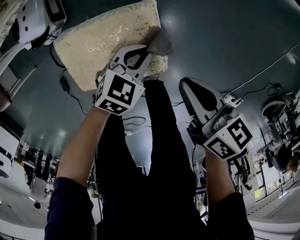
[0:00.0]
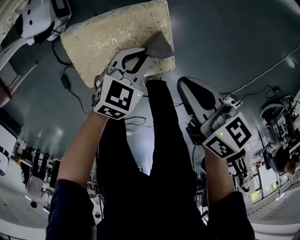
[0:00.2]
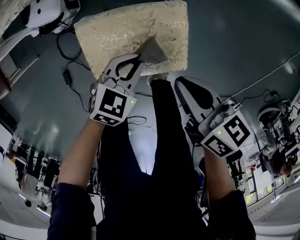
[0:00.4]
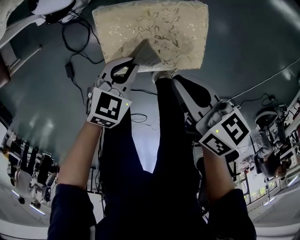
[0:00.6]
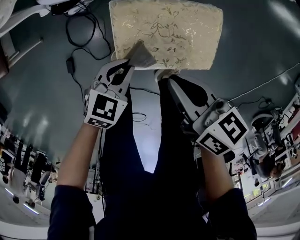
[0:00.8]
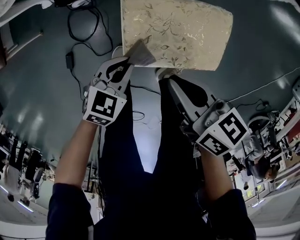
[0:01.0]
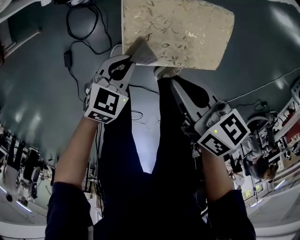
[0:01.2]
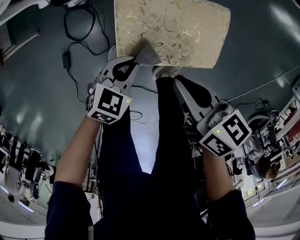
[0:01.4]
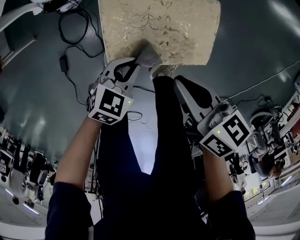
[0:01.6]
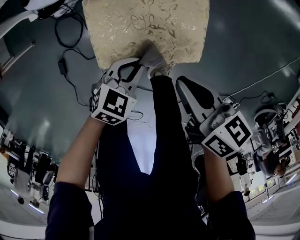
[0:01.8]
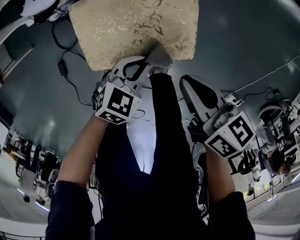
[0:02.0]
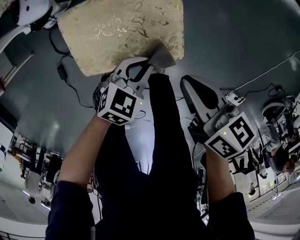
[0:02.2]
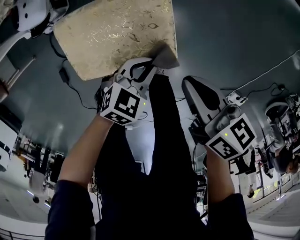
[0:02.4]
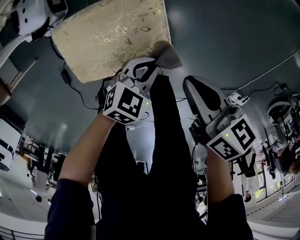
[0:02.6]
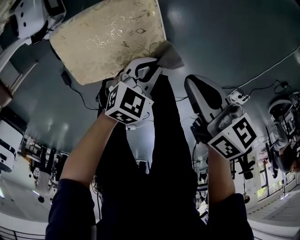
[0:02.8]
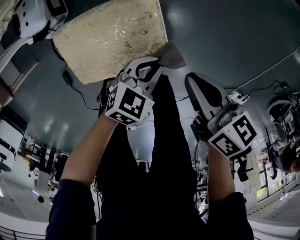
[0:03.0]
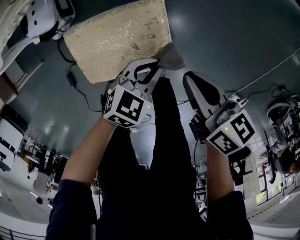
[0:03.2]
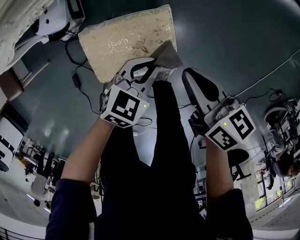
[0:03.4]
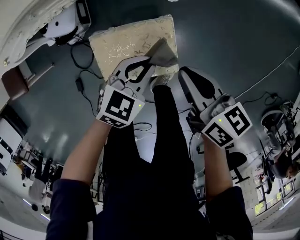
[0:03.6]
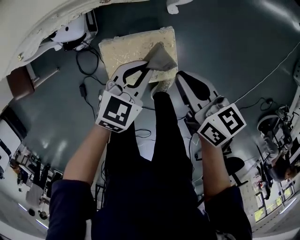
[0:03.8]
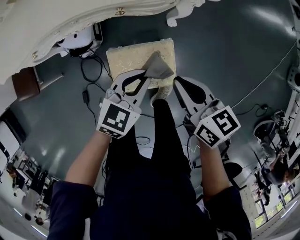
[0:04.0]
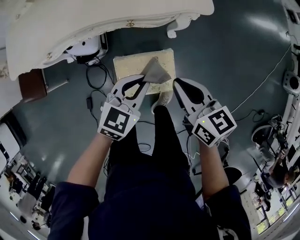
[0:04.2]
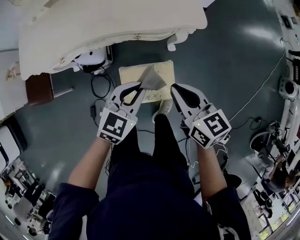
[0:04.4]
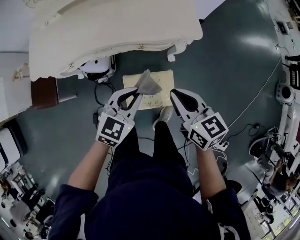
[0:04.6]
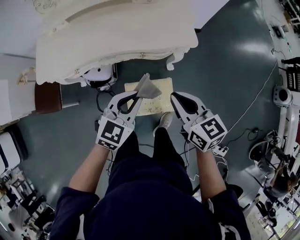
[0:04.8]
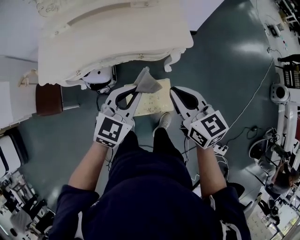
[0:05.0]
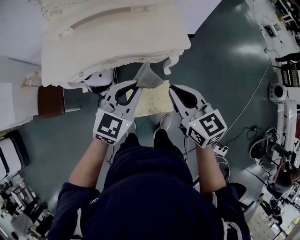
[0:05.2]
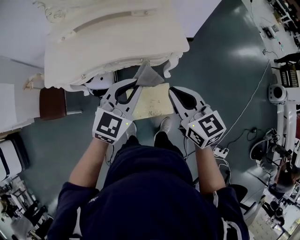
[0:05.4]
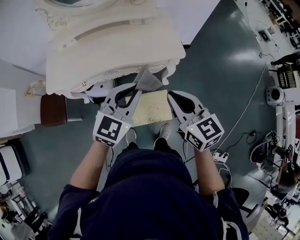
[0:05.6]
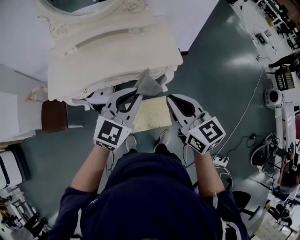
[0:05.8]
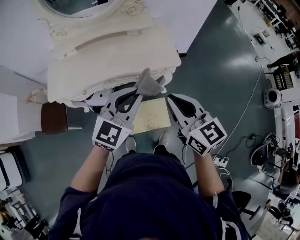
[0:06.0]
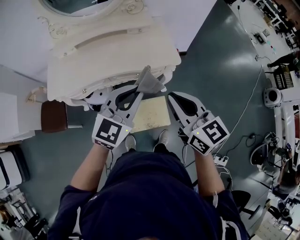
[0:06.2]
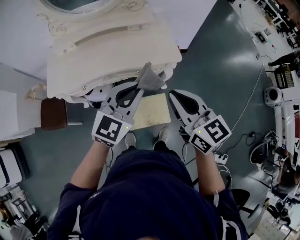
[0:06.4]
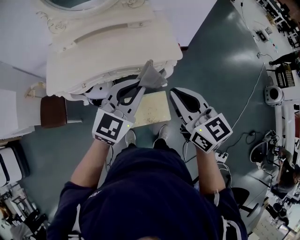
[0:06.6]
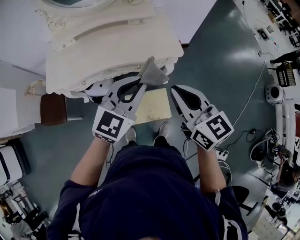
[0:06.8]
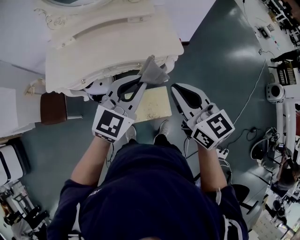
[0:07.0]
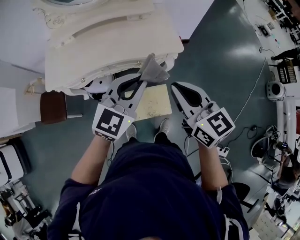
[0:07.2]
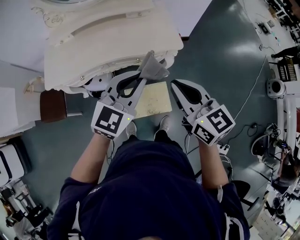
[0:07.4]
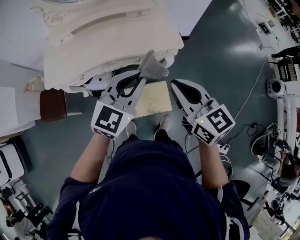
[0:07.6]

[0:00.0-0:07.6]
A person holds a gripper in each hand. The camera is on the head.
0:00.0 to 0:01.6: The left gripper goes about 20 cm to the left and backward; the right gripper is displaced to the left by roughly 15 cm.
0:01.6 to 0:03.0: Both grippers travel together to the right, some 20 cm.
0:03.0 to 0:04.6: The two grippers go some 40 cm upward and to the left. The left gripper rotates roughly 30 degrees; the right gripper turns by some 40 degrees.
0:04.6 to 0:06.0: The two grippers go approximately 20 cm upward. The left gripper changes its angle by approximately 20 degrees.
0:06.0 to 0:07.6: The grippers move only a little.

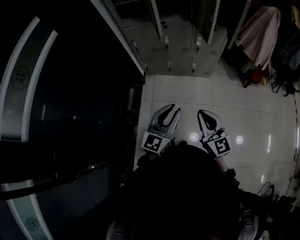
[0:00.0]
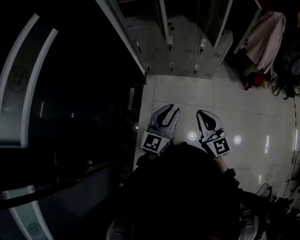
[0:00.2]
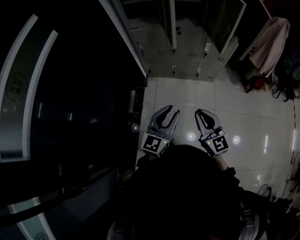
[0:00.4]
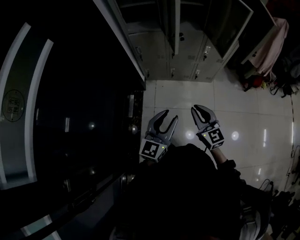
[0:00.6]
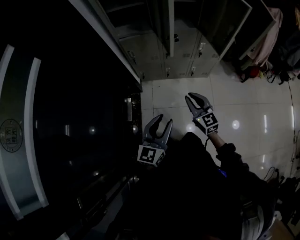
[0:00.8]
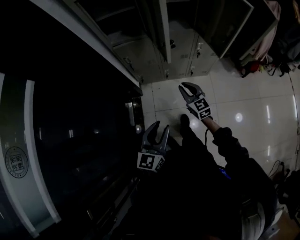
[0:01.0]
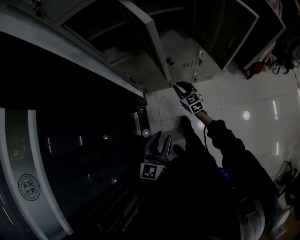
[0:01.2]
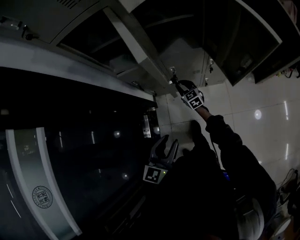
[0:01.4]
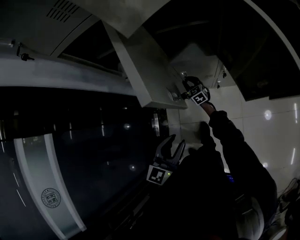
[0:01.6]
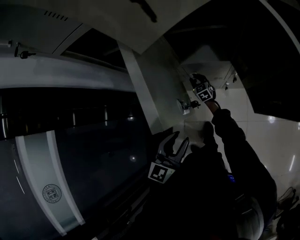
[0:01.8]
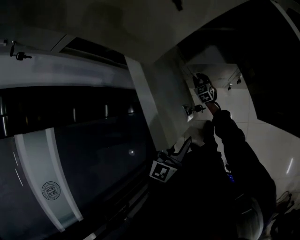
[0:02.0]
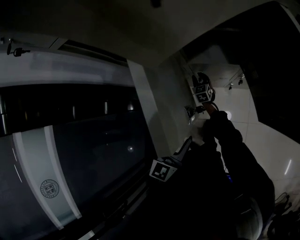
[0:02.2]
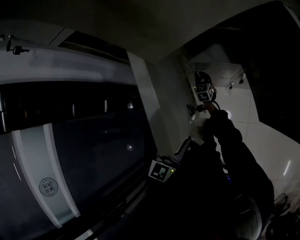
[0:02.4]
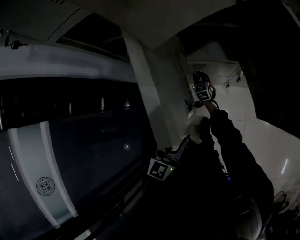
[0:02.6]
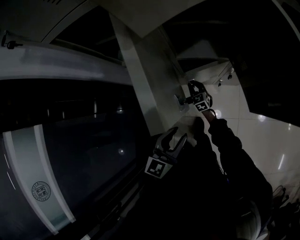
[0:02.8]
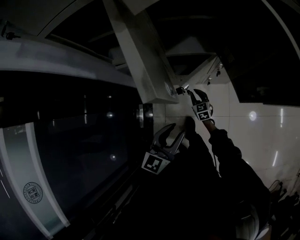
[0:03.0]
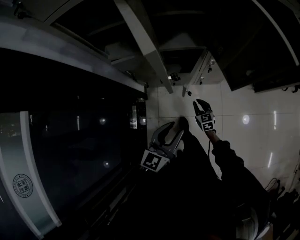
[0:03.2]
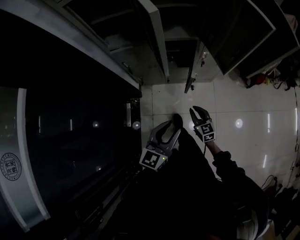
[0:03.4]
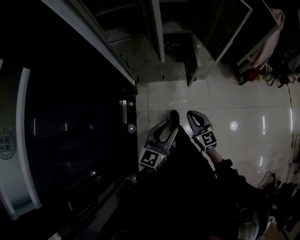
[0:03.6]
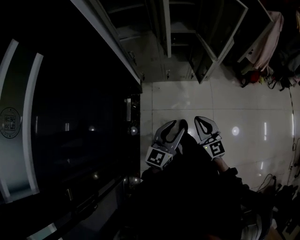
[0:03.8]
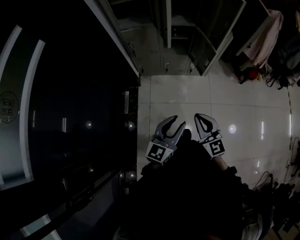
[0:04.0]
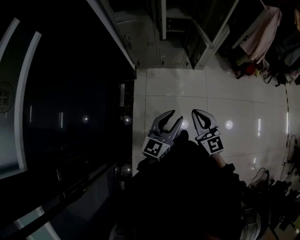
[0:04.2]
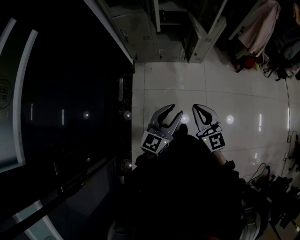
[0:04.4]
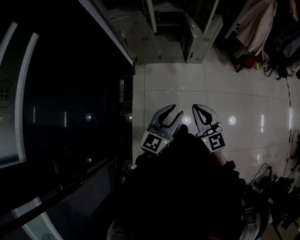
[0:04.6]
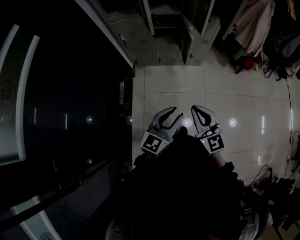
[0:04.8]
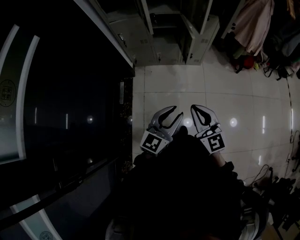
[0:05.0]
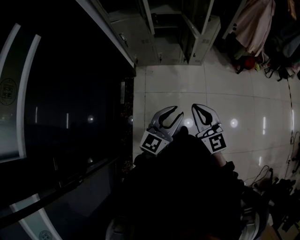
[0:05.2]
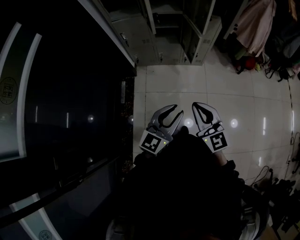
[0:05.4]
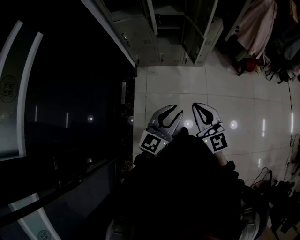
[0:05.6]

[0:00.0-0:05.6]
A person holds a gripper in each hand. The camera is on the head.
0:00.0 to 0:01.4: The left gripper is displaced forward by roughly 30 cm. The right gripper travels forward and downward by about 60 cm, and turns by roughly 20 degrees.
0:01.4 to 0:02.8: The left gripper travels forward by some 10 cm, while the right gripper is displaced downward and forward by about 10 cm.
0:02.8 to 0:04.2: The left gripper travels backward by about 40 cm. The right gripper moves backward and upward, approximately 70 cm, and swivels about 30 degrees.
0:04.2 to 0:05.6: The right gripper heads upward, covering roughly 5 cm. Meanwhile the left gripper moves to the right, about 5 cm.

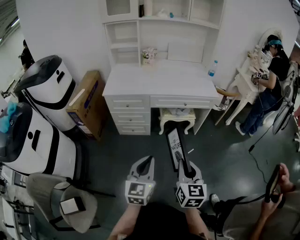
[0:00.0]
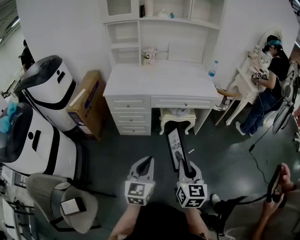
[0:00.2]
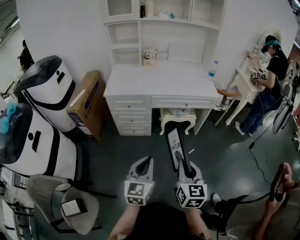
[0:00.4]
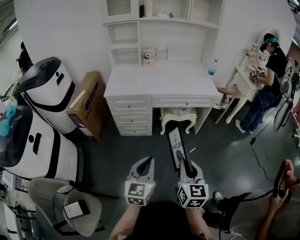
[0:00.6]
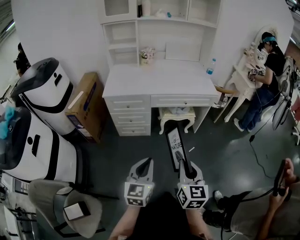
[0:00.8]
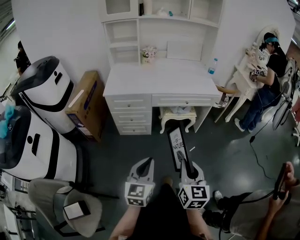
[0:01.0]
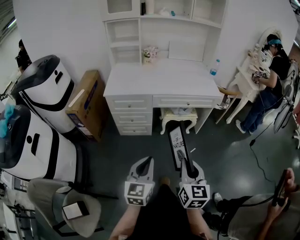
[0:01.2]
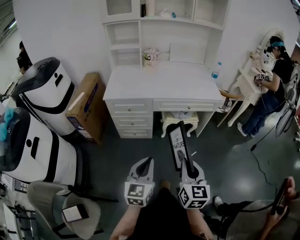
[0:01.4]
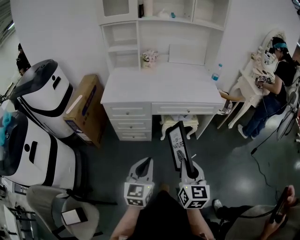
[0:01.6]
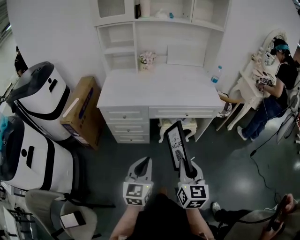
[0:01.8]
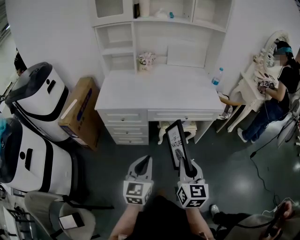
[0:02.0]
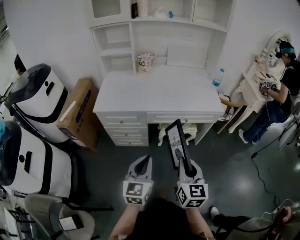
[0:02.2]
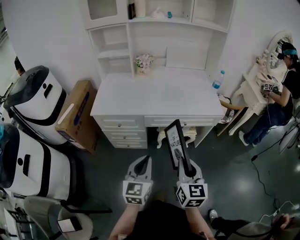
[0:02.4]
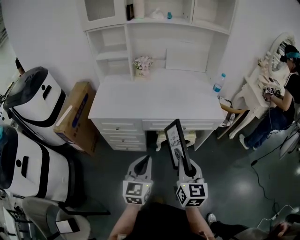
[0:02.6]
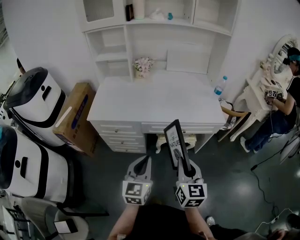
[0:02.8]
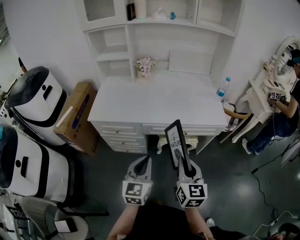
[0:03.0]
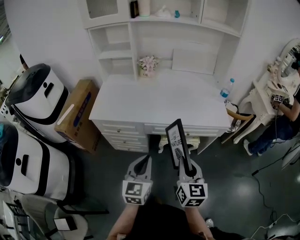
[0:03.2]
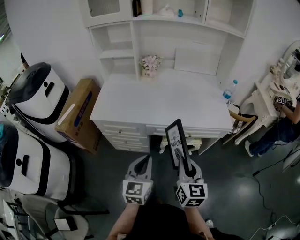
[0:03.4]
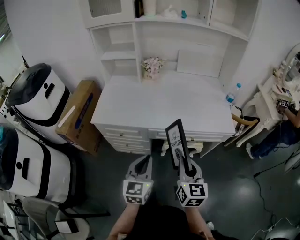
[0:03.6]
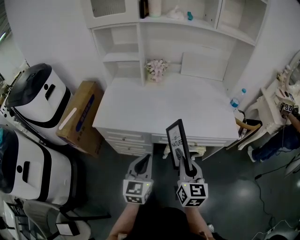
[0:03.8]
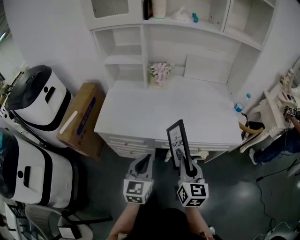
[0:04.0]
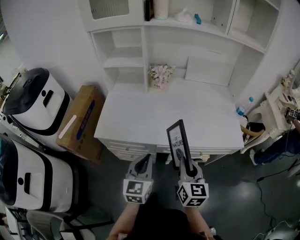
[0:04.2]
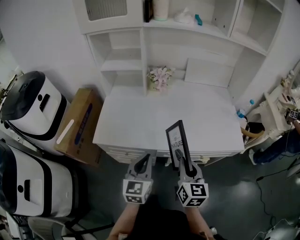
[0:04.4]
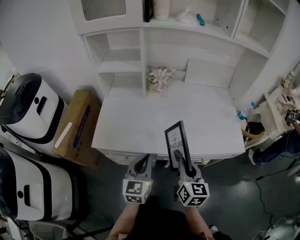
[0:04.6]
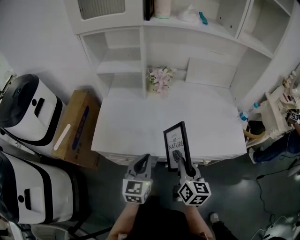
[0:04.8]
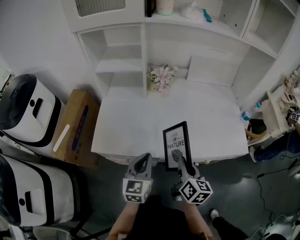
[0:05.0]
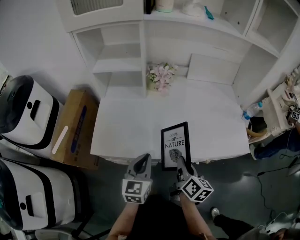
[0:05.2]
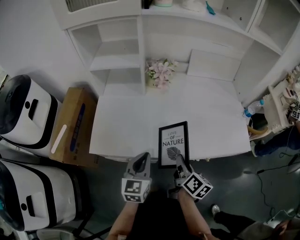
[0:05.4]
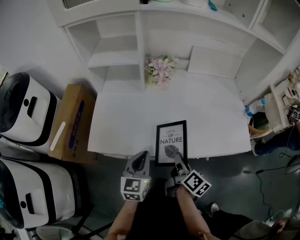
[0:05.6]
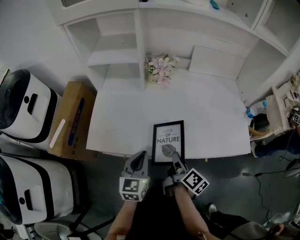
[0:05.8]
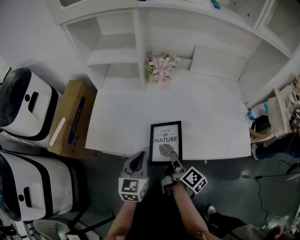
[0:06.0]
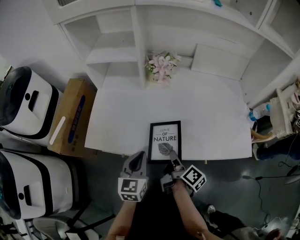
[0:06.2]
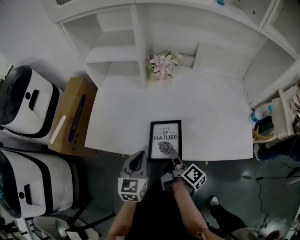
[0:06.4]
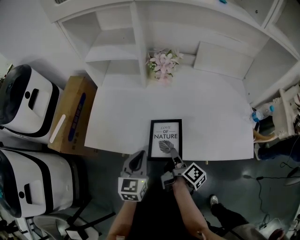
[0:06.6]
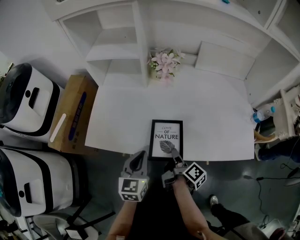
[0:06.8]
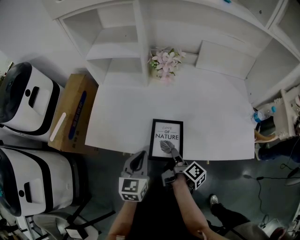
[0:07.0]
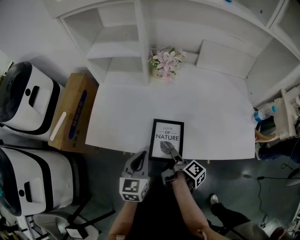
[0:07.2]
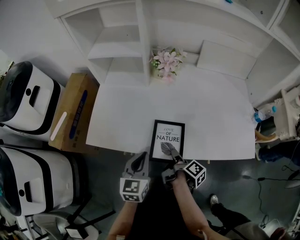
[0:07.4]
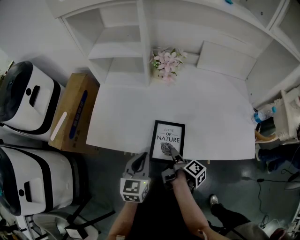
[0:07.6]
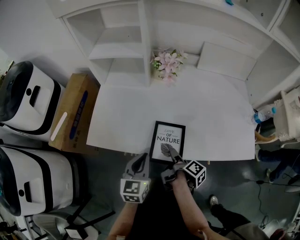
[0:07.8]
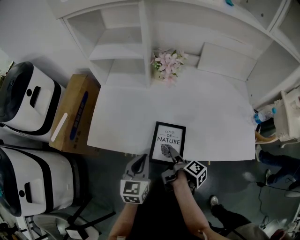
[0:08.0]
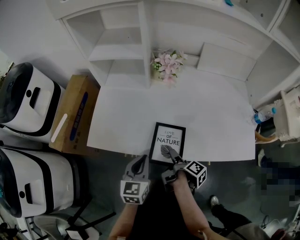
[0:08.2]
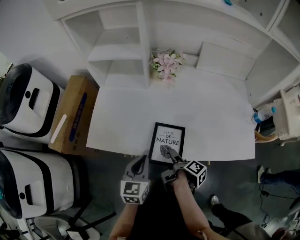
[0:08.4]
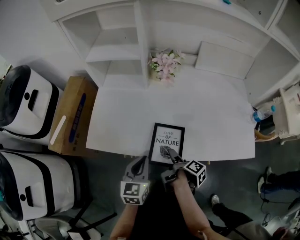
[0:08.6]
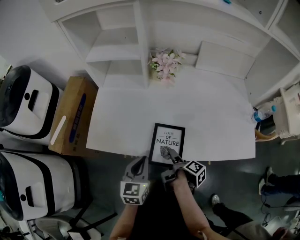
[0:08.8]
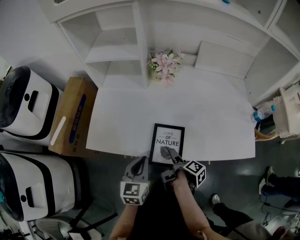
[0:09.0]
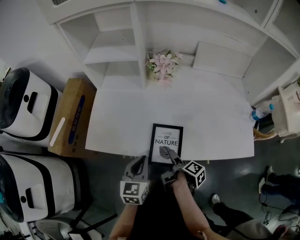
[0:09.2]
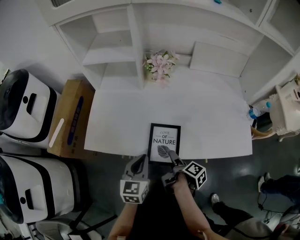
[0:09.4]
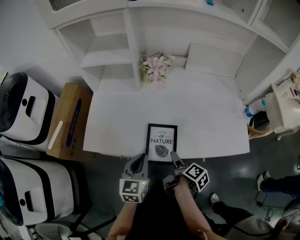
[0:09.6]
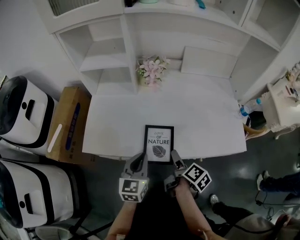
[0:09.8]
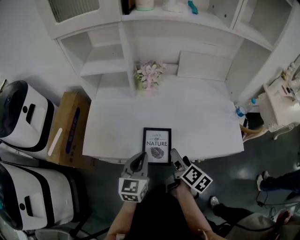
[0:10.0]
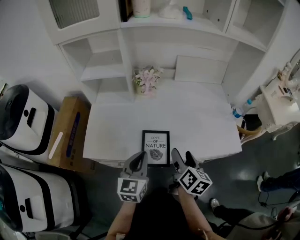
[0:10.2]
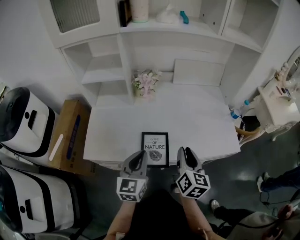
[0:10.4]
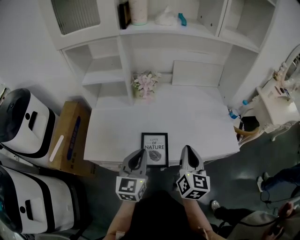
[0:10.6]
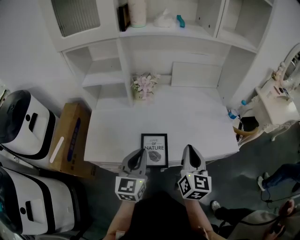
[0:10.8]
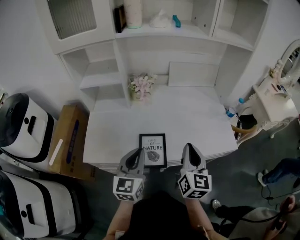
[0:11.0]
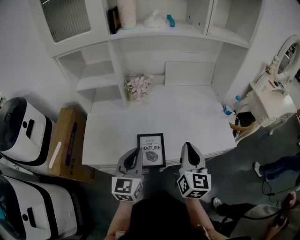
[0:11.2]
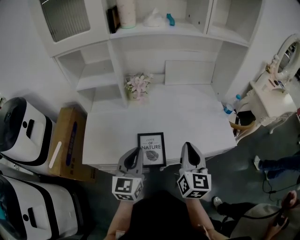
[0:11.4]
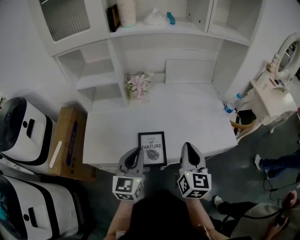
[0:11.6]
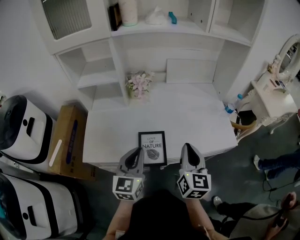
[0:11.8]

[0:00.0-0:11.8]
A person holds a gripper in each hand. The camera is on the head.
0:00.0 to 0:01.4: The left gripper ends up about 5 cm from where it was.
0:01.4 to 0:03.0: Both grippers move forward, some 25 cm.
0:03.0 to 0:04.4: The grippers both shift forward and to the left by some 20 cm.
0:04.4 to 0:06.0: The left gripper heads forward and downward, covering some 10 cm. Meanwhile the right gripper shifts approximately 15 cm downward and forward, and rotates around the line of its fingers by about 60 degrees, clockwise from behind.
0:06.0 to 0:07.4: The right gripper goes approximately 5 cm downward, and swivels about 20 degrees.
0:07.4 to 0:08.8: The right gripper opens up.
0:08.8 to 0:10.4: The right gripper heads upward and to the right, covering about 25 cm, rotates around the line of its fingers by approximately 70 degrees, counterclockwise from behind, and closes its fingers. The left gripper heads upward, covering roughly 10 cm.
0:10.4 to 0:11.8: There are only small adjustments of the grippers.
